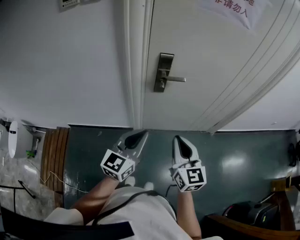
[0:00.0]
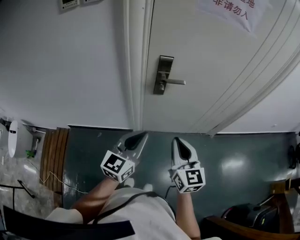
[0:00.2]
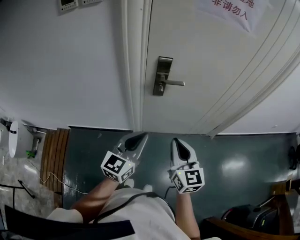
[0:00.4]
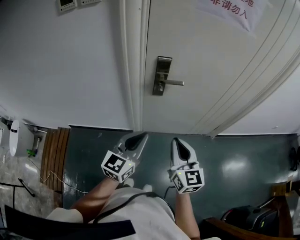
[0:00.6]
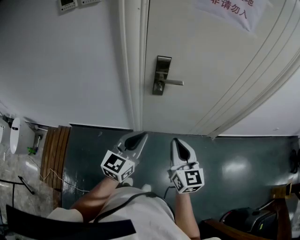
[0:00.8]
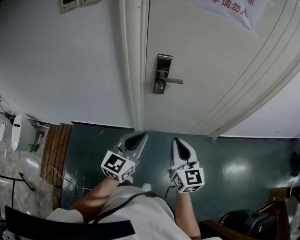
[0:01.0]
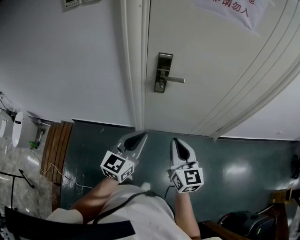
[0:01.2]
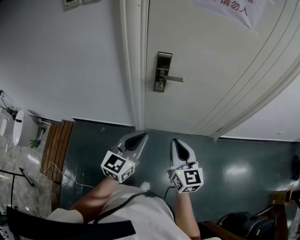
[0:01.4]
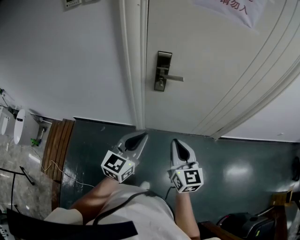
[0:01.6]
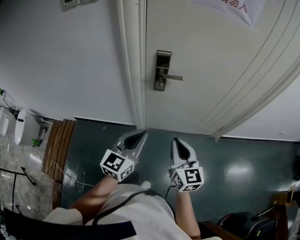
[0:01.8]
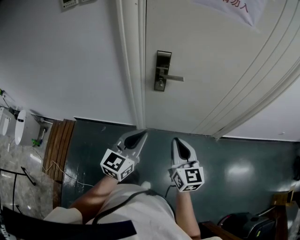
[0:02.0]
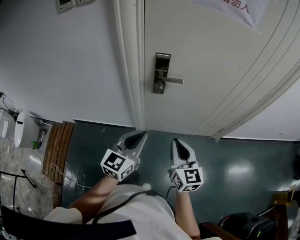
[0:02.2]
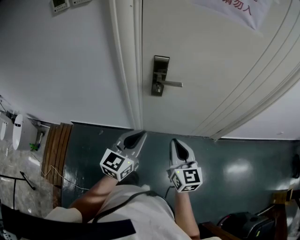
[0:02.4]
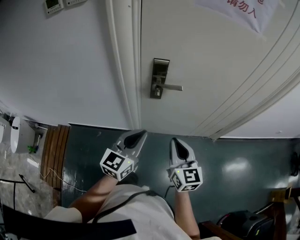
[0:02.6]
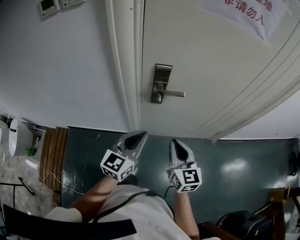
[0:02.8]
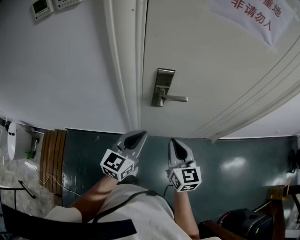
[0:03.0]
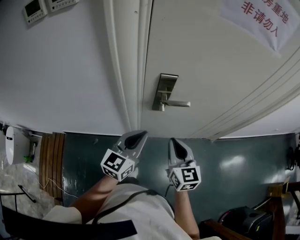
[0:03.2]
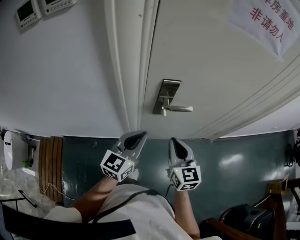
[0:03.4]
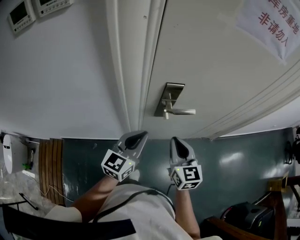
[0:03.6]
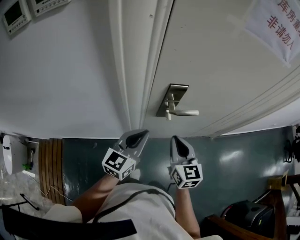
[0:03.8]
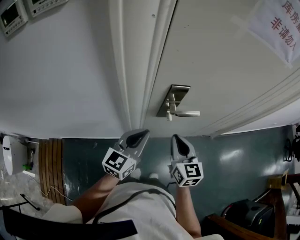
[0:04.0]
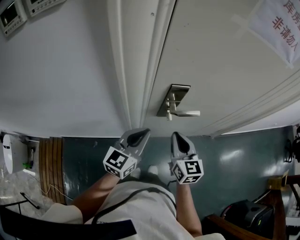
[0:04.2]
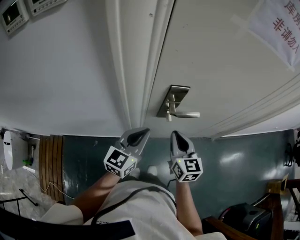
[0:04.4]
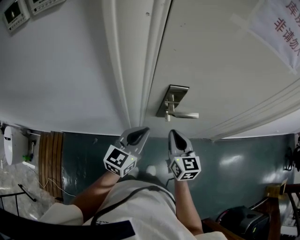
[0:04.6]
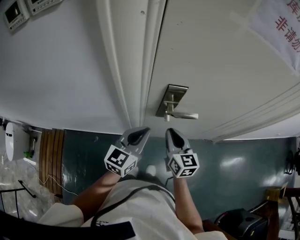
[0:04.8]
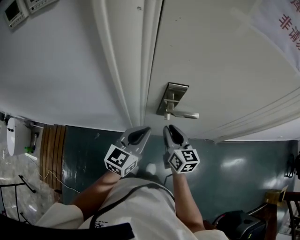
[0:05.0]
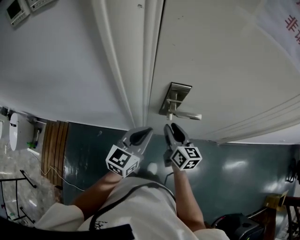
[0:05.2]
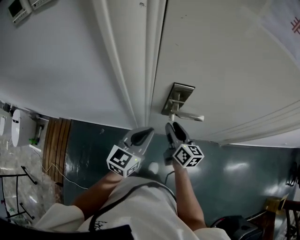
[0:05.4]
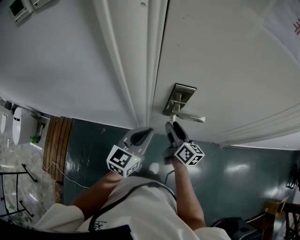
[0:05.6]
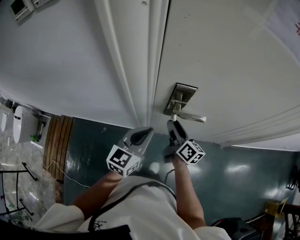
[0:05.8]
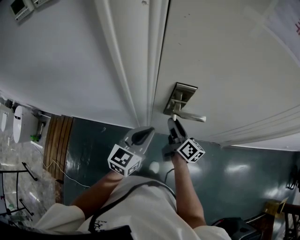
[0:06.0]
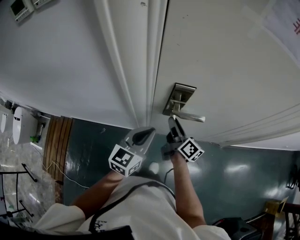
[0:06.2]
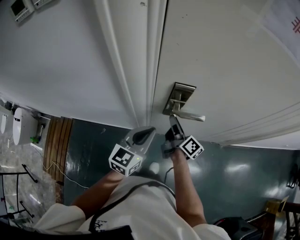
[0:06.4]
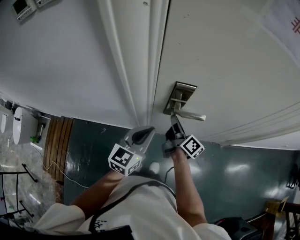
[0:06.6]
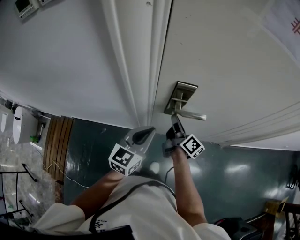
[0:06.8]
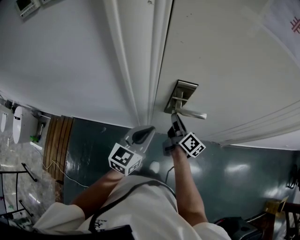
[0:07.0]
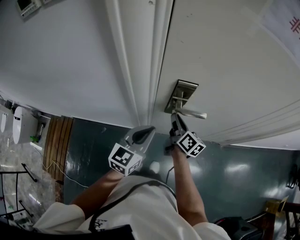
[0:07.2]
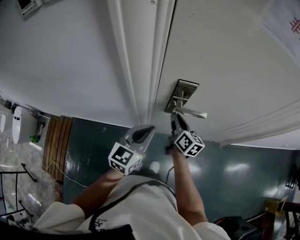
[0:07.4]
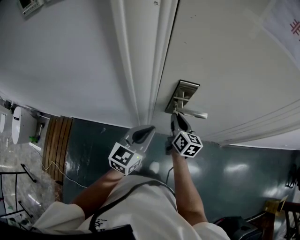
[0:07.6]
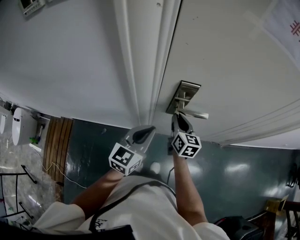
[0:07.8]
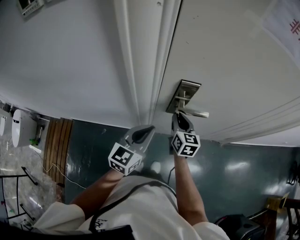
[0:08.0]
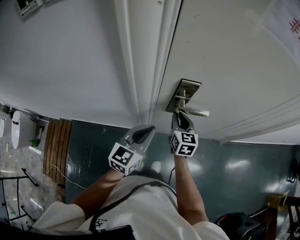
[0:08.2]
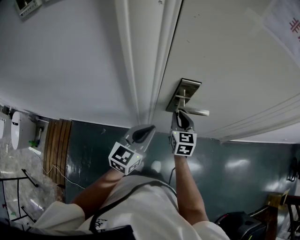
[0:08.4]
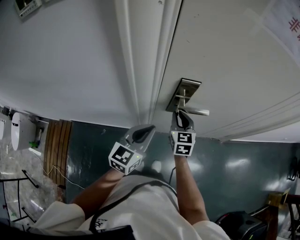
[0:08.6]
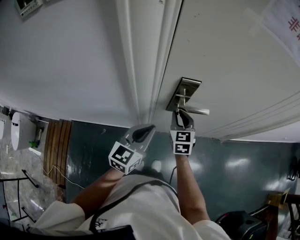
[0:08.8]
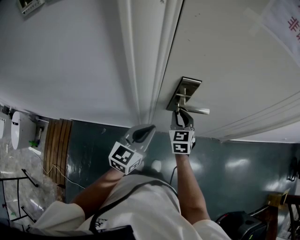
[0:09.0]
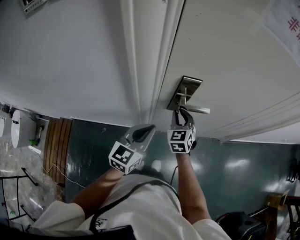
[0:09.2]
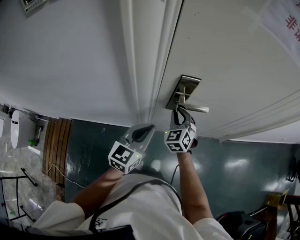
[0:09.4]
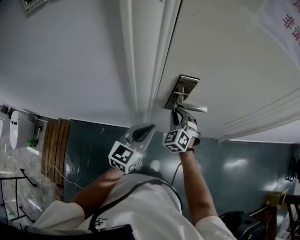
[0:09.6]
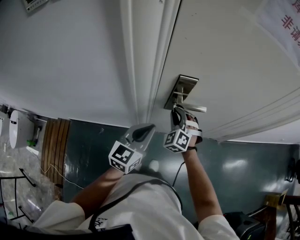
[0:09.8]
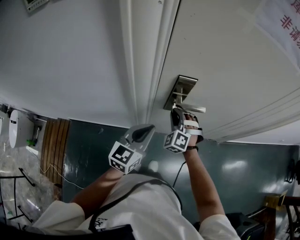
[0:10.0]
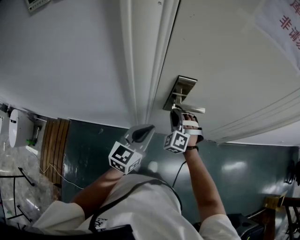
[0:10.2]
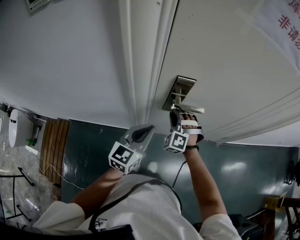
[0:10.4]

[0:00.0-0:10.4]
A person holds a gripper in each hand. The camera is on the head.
0.0 to 1.4 s: The left gripper moves to the right, roughly 5 cm; the right gripper shifts by about 5 cm.
1.4 to 3.0 s: Both grippers travel together forward, roughly 15 cm.
3.0 to 4.4 s: The two grippers go some 15 cm forward and to the left.
4.4 to 6.0 s: The right gripper moves forward and downward, roughly 10 cm, twists about 40 degrees clockwise, seen from behind, and opens.
6.0 to 7.4 s: The right gripper closes its fingers.
7.4 to 9.0 s: The right gripper rotates around the line of its fingers by approximately 50 degrees, counterclockwise from behind.
9.0 to 10.4 s: The right gripper rolls counterclockwise, seen from behind, by some 60 degrees.

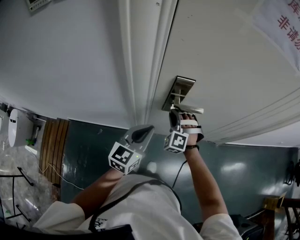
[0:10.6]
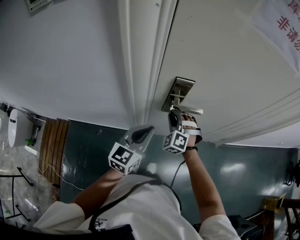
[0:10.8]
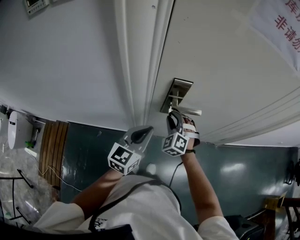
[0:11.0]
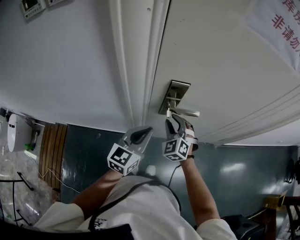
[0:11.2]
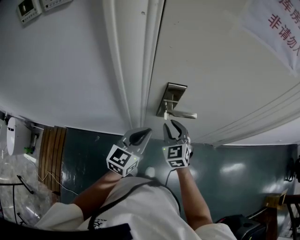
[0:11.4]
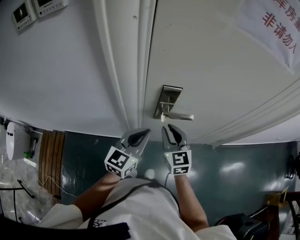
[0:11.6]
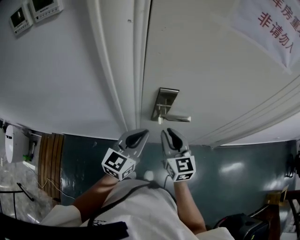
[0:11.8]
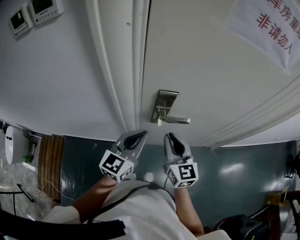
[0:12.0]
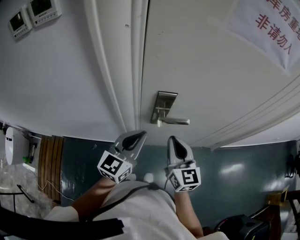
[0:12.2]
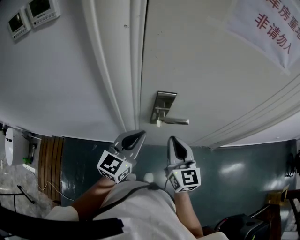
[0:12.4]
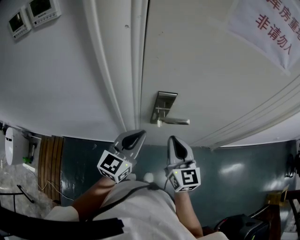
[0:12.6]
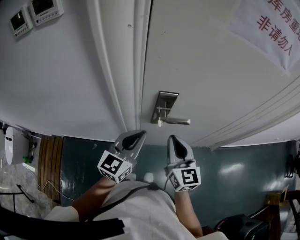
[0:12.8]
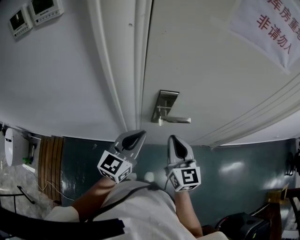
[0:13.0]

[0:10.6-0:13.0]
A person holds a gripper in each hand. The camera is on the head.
10.6 to 11.8 s: The right gripper is displaced upward and backward by approximately 10 cm, and rotates around the line of its fingers by approximately 70 degrees, clockwise from behind.
11.8 to 13.0 s: There are only small adjustments of the grippers.

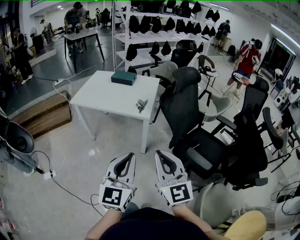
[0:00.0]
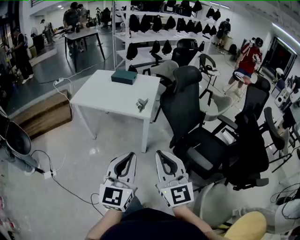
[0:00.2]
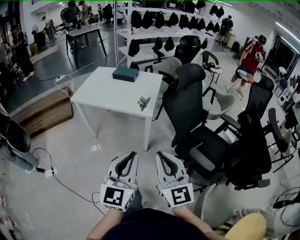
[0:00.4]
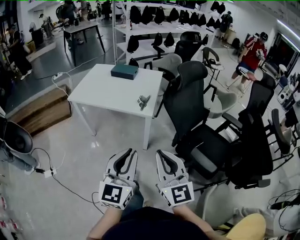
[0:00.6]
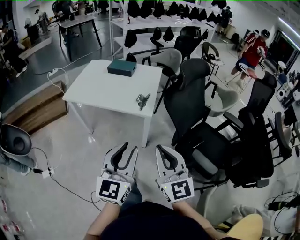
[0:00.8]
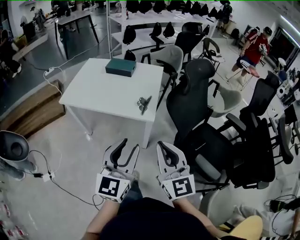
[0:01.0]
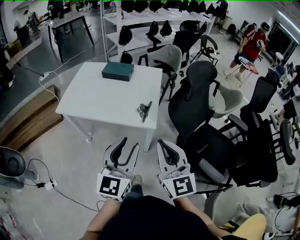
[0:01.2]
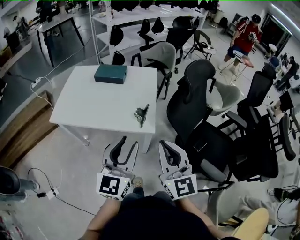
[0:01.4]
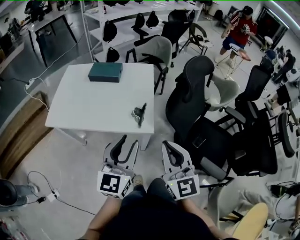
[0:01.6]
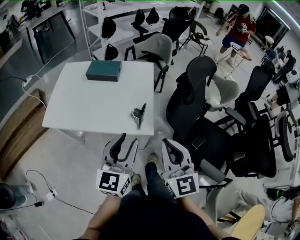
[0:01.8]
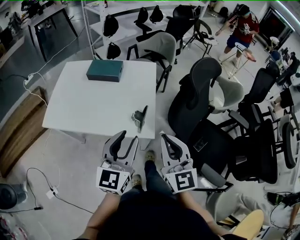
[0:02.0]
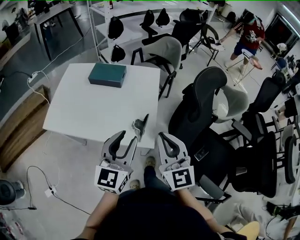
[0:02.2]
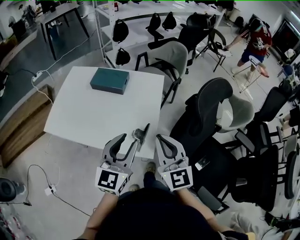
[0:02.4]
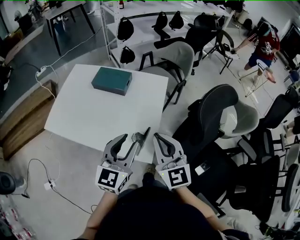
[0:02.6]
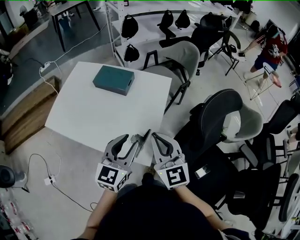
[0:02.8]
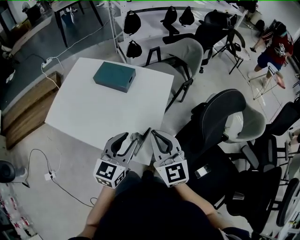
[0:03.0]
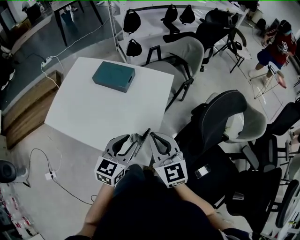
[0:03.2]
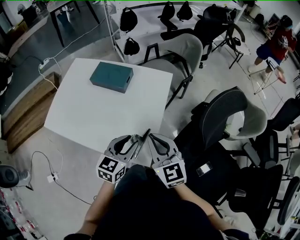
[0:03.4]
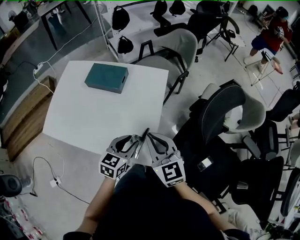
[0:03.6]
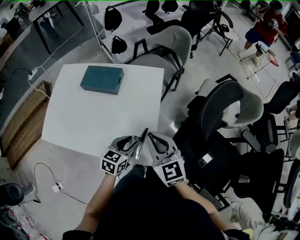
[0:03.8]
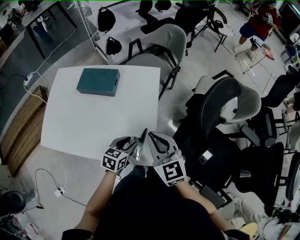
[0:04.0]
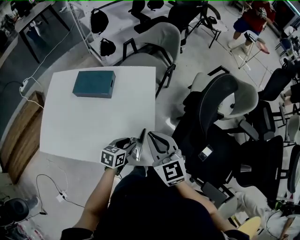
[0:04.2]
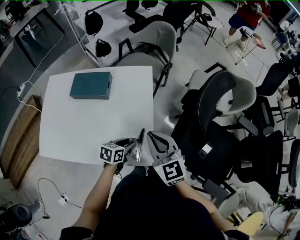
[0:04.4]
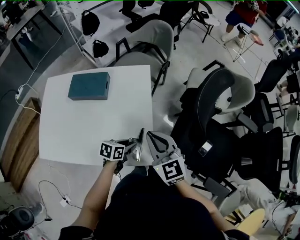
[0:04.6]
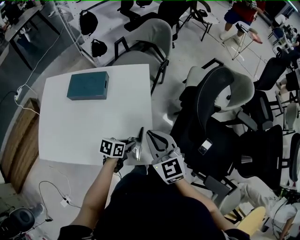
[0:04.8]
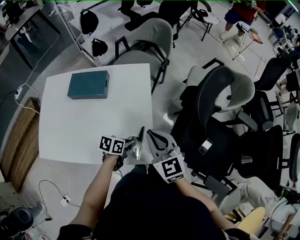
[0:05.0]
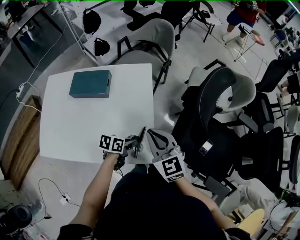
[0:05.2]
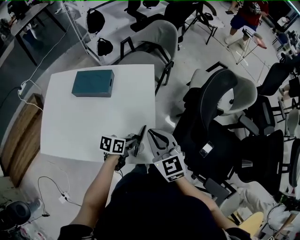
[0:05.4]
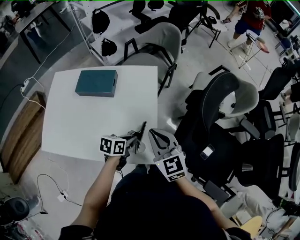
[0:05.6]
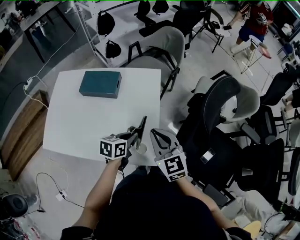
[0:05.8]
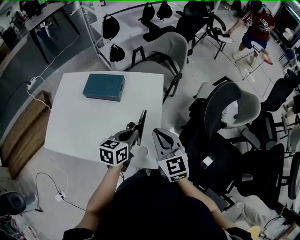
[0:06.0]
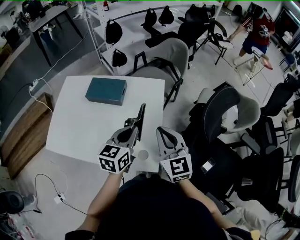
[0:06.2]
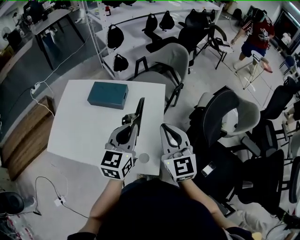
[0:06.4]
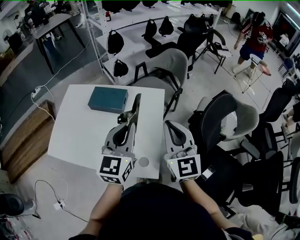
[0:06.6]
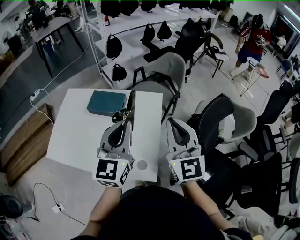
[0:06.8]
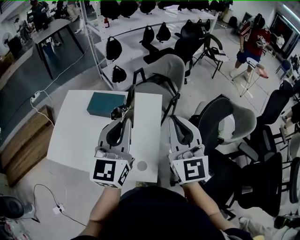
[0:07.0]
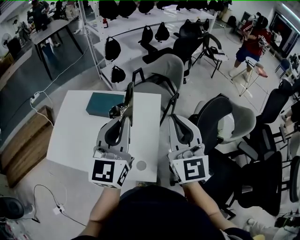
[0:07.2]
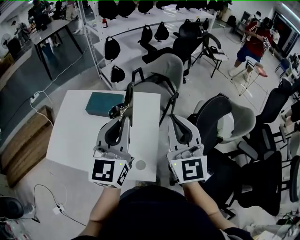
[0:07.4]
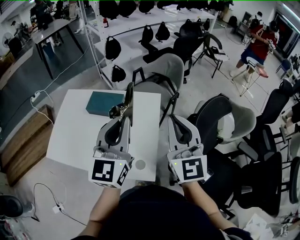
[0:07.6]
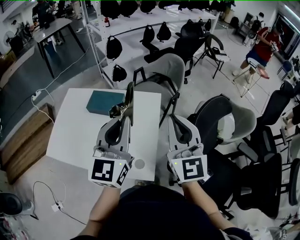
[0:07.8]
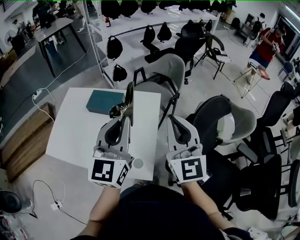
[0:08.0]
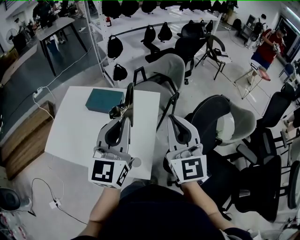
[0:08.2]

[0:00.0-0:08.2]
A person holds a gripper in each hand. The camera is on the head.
0.0 to 1.6 s: The two grippers go roughly 35 cm forward. The left gripper opens its fingers.
1.6 to 3.2 s: The left gripper heads forward and downward, covering about 25 cm; the right gripper goes about 30 cm forward, and turns by about 20 degrees.
3.2 to 5.0 s: The left gripper travels downward by some 20 cm, and swivels some 60 degrees.
5.0 to 6.6 s: The right gripper shifts about 15 cm upward, and rotates roughly 20 degrees, while the left gripper travels upward by some 35 cm, and points its fingers some 40 degrees further upward.
6.6 to 8.2 s: The grippers both shift upward by approximately 5 cm.

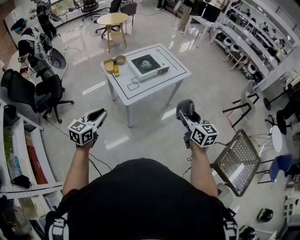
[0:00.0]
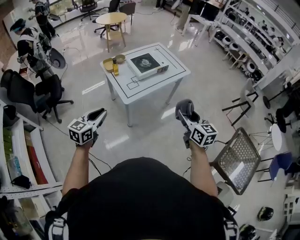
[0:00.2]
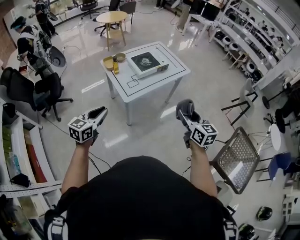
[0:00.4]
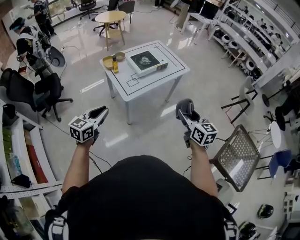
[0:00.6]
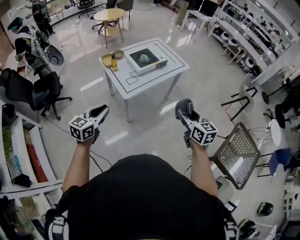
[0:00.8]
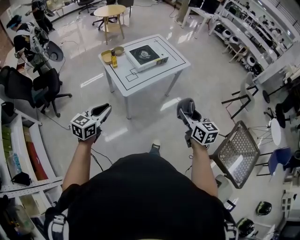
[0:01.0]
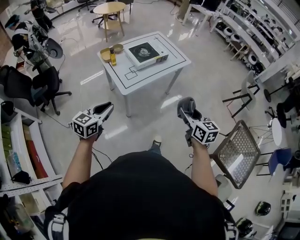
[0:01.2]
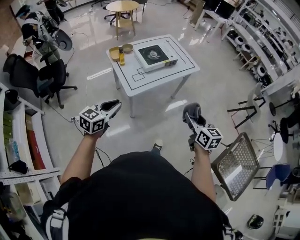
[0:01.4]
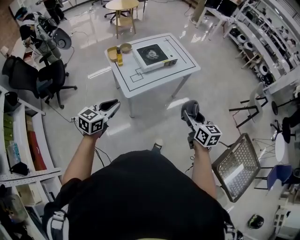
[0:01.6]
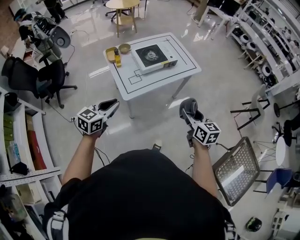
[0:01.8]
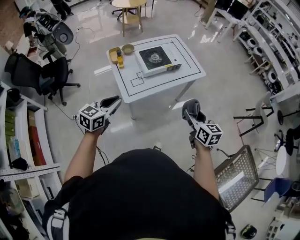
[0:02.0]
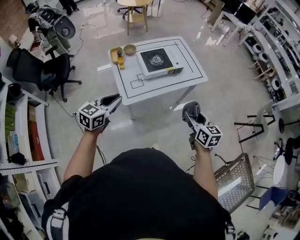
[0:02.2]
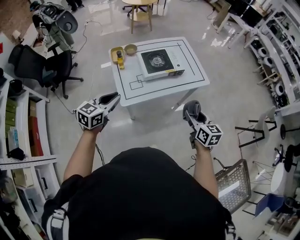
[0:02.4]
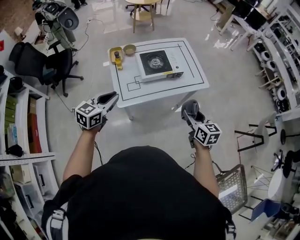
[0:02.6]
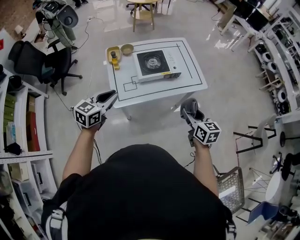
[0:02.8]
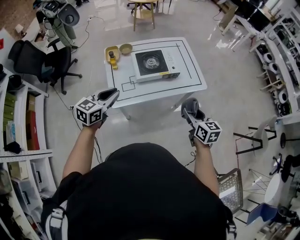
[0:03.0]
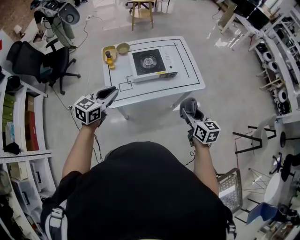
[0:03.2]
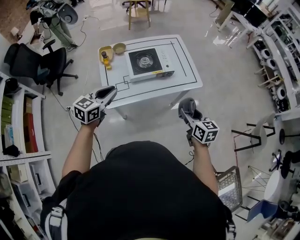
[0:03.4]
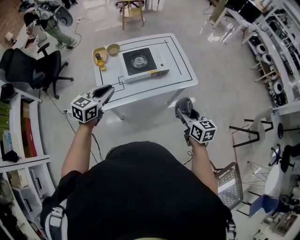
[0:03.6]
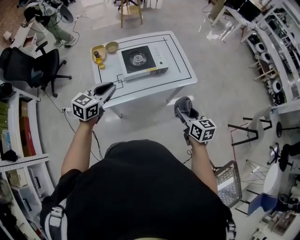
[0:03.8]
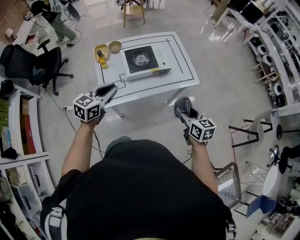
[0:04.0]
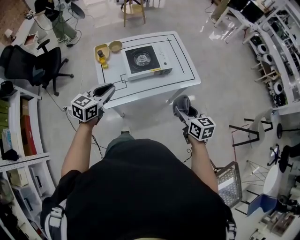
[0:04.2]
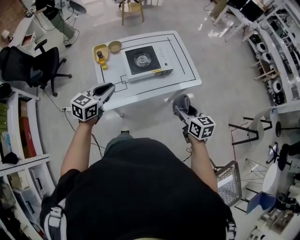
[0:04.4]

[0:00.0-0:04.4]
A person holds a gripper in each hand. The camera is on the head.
0.0 to 1.4 s: The right gripper is displaced downward by about 5 cm, while the left gripper travels to the right by approximately 5 cm.
1.4 to 3.0 s: Both grippers travel together forward and to the right, about 35 cm.
3.0 to 4.4 s: The left gripper is displaced forward by approximately 5 cm. Meanwhile the right gripper ends up roughly 5 cm from where it was.
